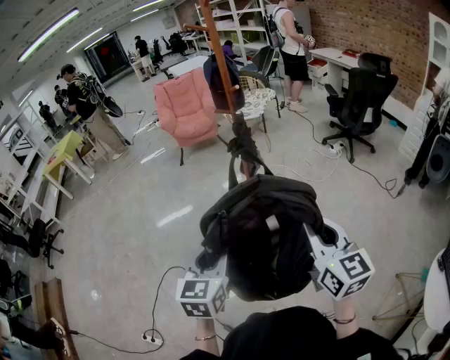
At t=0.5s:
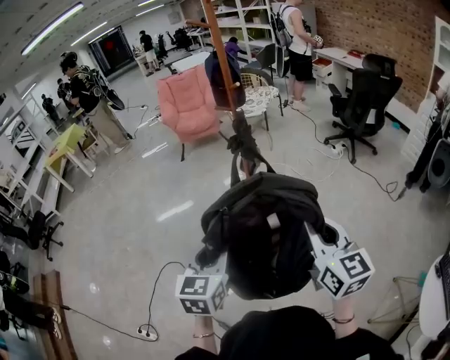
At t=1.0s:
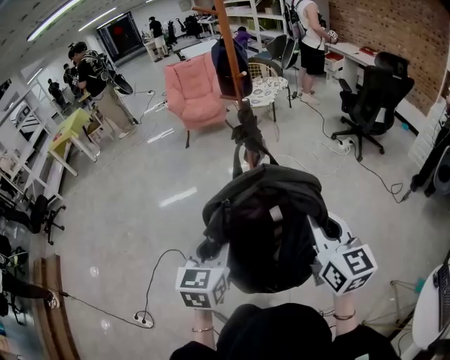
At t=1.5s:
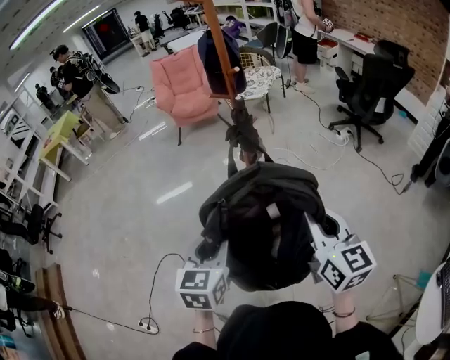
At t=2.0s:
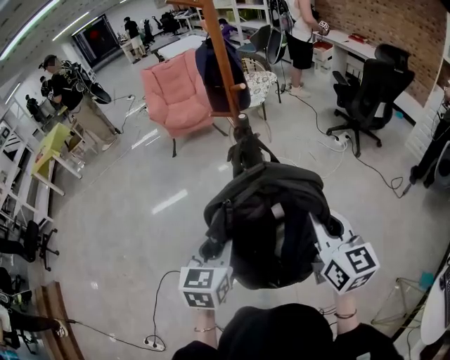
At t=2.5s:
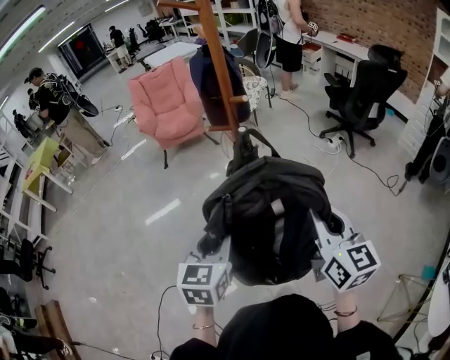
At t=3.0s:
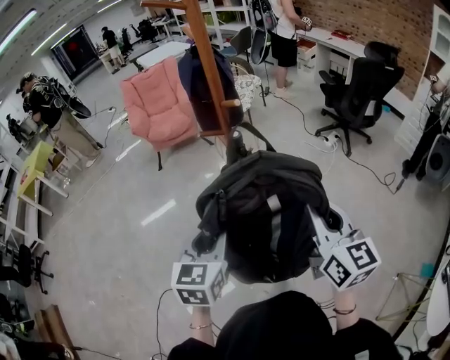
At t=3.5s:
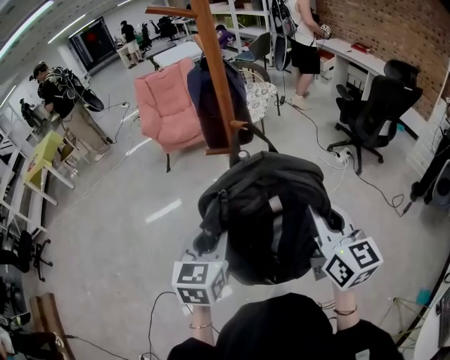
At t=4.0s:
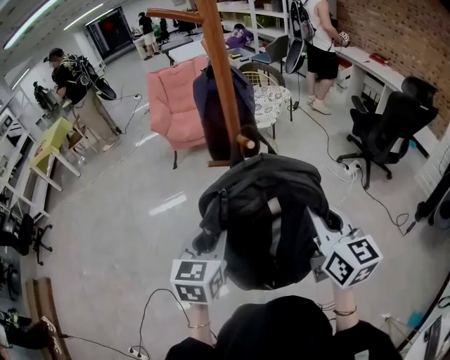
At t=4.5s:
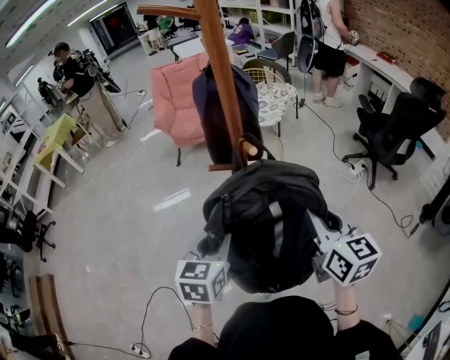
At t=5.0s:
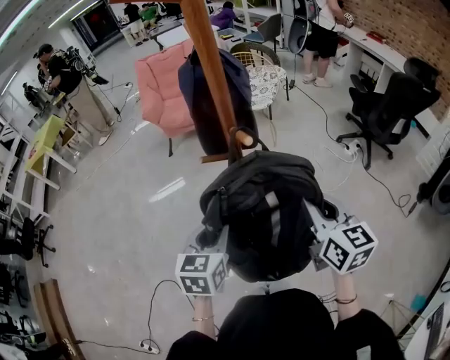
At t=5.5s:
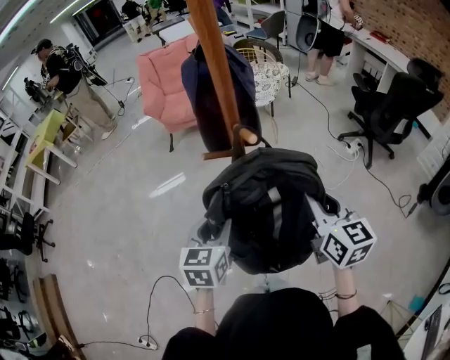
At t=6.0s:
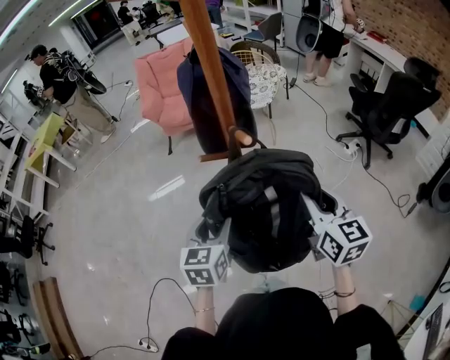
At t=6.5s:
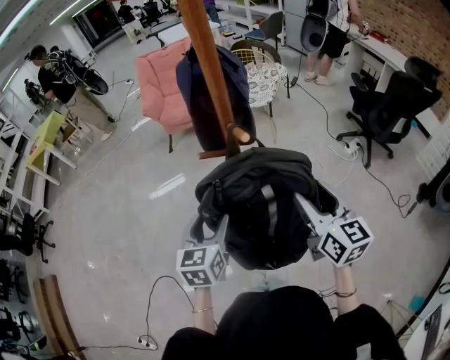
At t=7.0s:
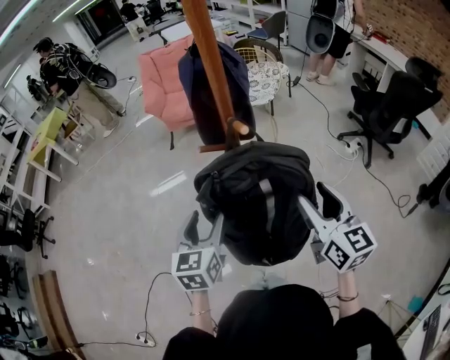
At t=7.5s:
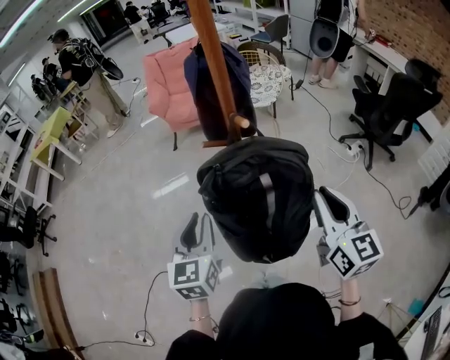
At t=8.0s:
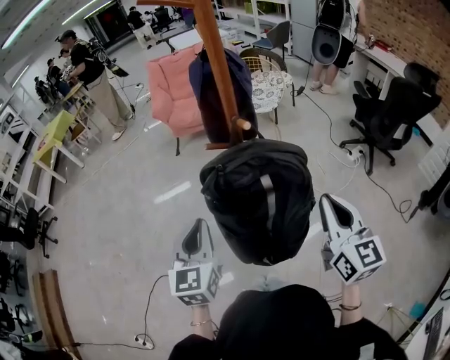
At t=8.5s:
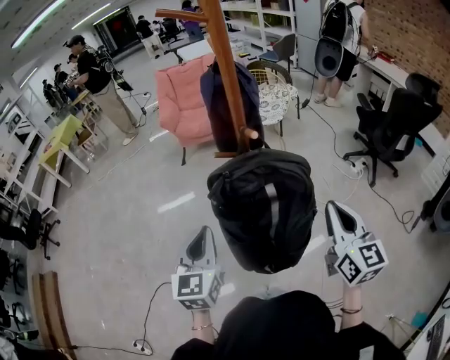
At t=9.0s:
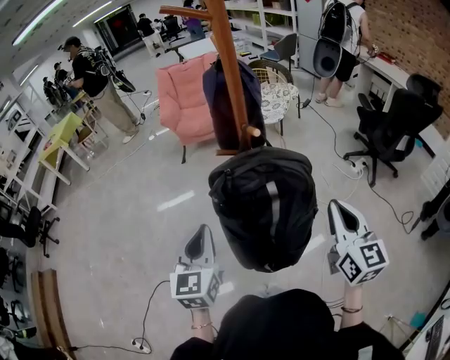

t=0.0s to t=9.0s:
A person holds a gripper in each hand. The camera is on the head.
t=0.0s to t=2.0s: The grippers both shift forward by about 20 cm.
t=2.0s to t=4.5s: The grippers both shift forward by some 25 cm.
t=4.5s to t=7.0s: The left gripper opens up, while the right gripper opens up.
t=7.0s to t=9.0s: The grippers both shift backward by some 5 cm. The left gripper closes its fingers. The right gripper closes.

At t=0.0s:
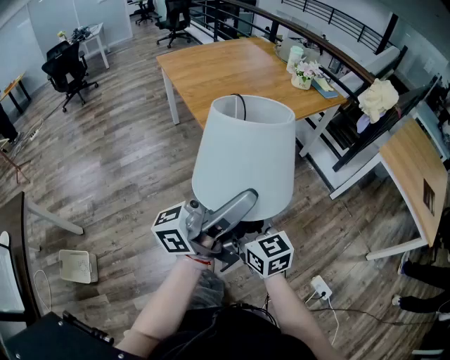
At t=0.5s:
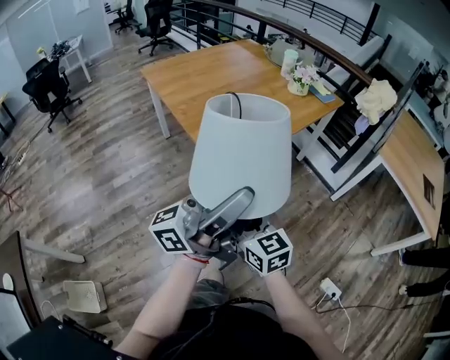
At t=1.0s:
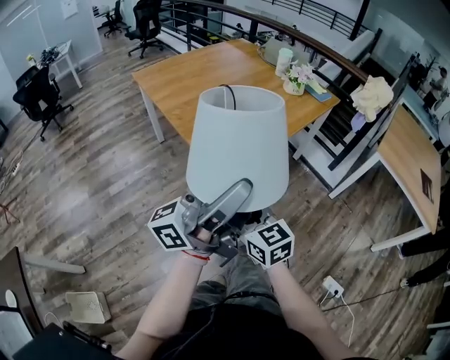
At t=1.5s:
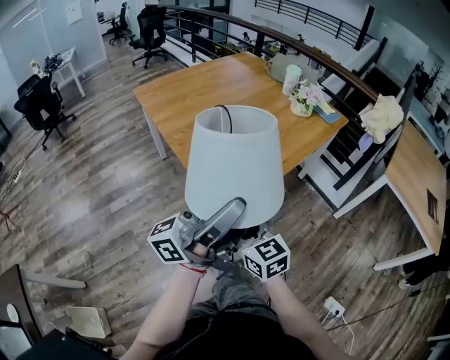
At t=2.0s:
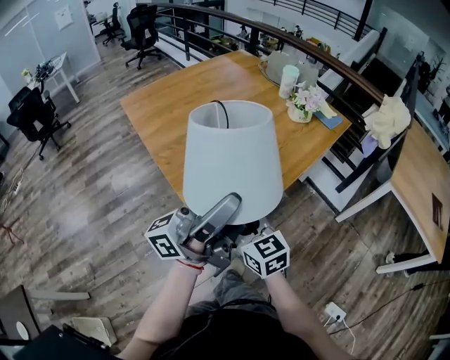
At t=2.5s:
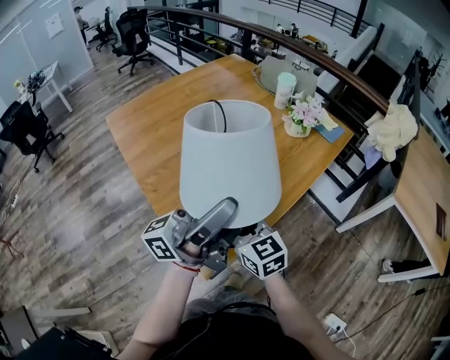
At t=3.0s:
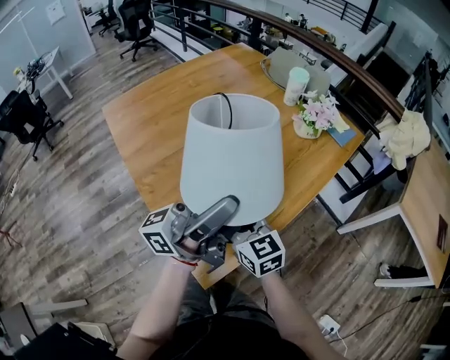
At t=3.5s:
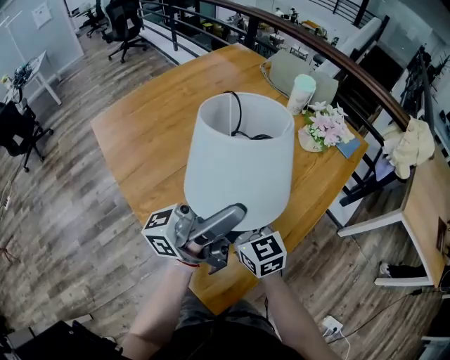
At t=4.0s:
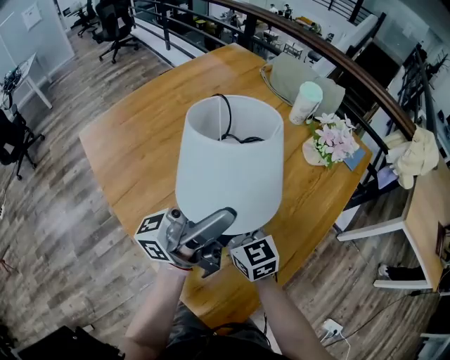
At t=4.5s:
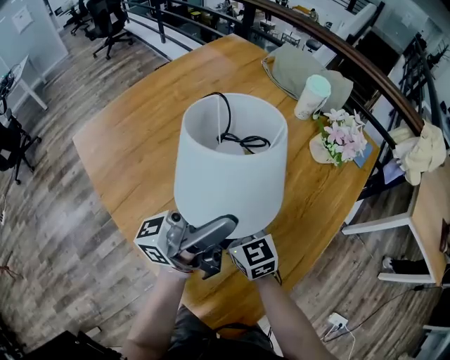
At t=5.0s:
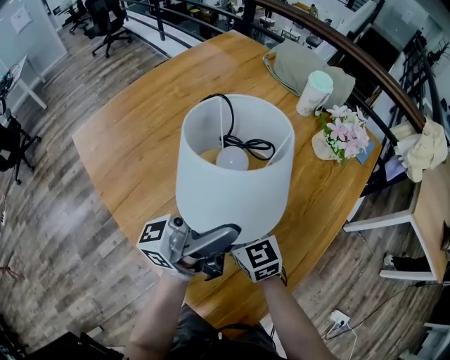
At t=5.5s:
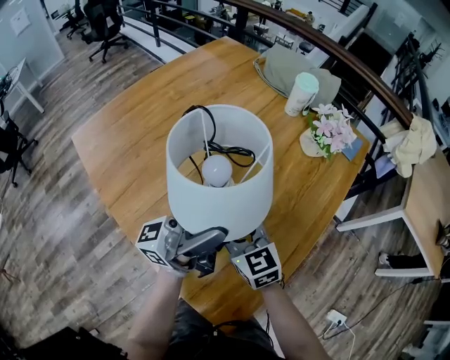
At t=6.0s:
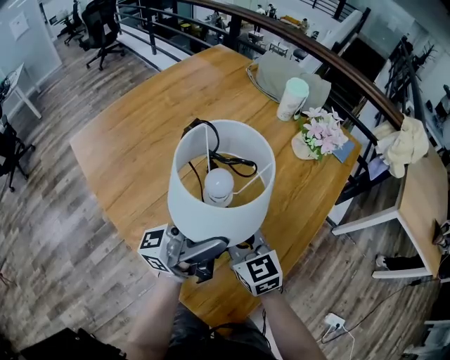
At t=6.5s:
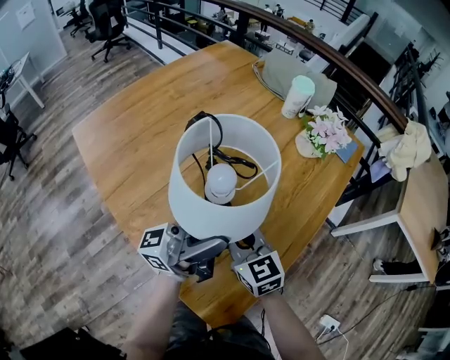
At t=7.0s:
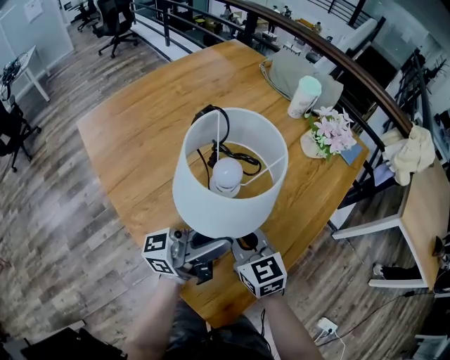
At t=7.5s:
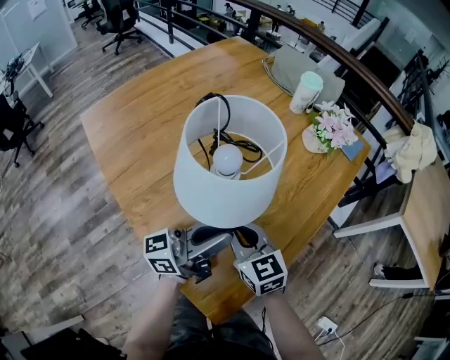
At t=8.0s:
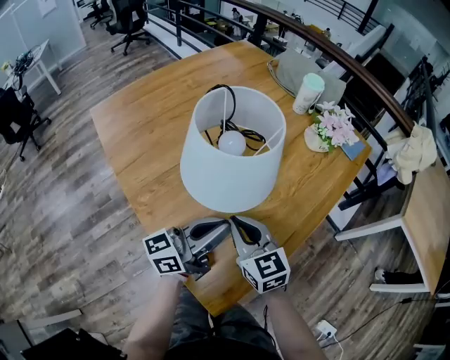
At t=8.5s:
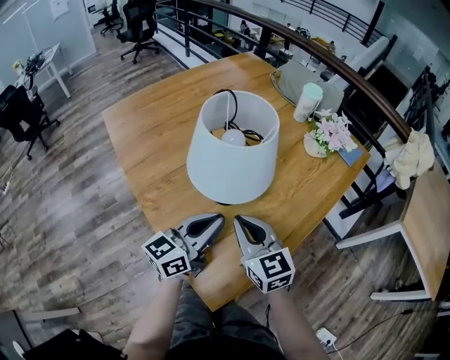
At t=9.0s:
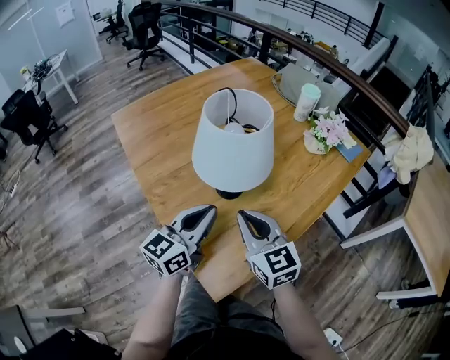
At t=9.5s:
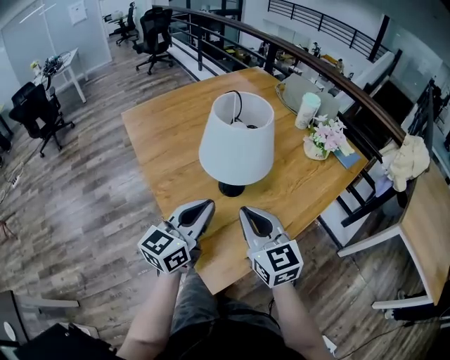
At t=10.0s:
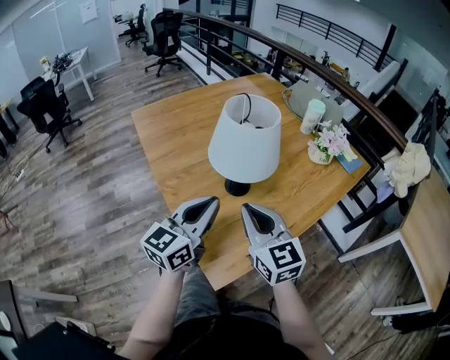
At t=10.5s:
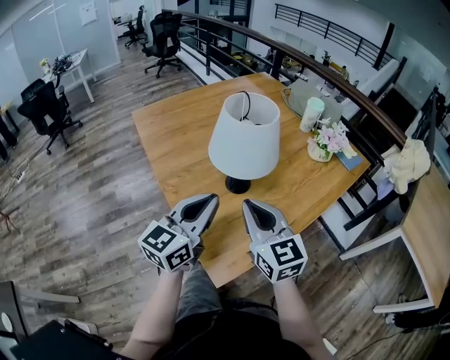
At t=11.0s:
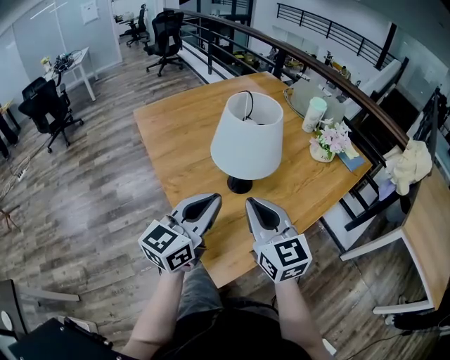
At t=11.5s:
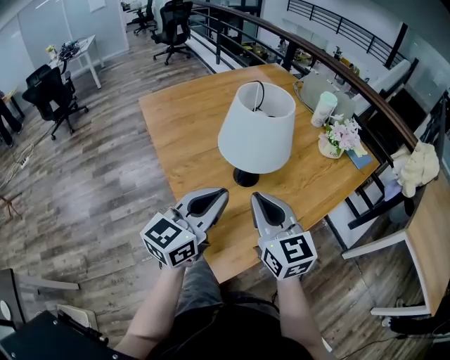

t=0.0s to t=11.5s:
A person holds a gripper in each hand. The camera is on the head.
t=0.0s to t=2.0s: The left gripper shifts roughly 35 cm forward and to the left, while the right gripper moves forward, approximately 30 cm.
t=2.0s to t=4.0s: Both grippers travel together forward, approximately 30 cm.
t=4.0s to t=6.0s: The right gripper closes its fingers, while the left gripper is displaced downward by roughly 5 cm.
t=6.0s to t=7.5s: The left gripper travels downward by about 10 cm, and turns by some 20 degrees.
t=7.5s to t=9.5s: The left gripper goes approximately 5 cm backward, and swivels some 50 degrees. Meanwhile the right gripper goes roughly 15 cm upward and backward.
t=9.5s to t=11.5s: The grippers move only a little.

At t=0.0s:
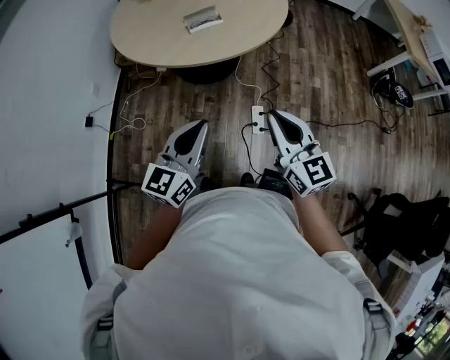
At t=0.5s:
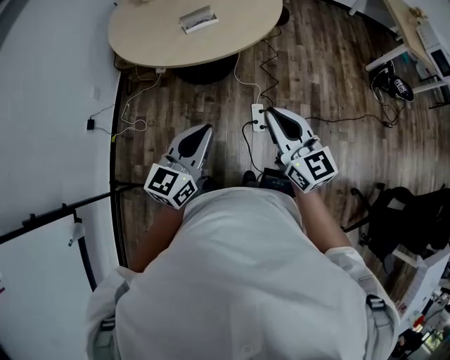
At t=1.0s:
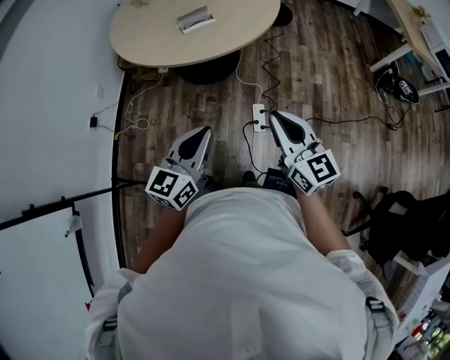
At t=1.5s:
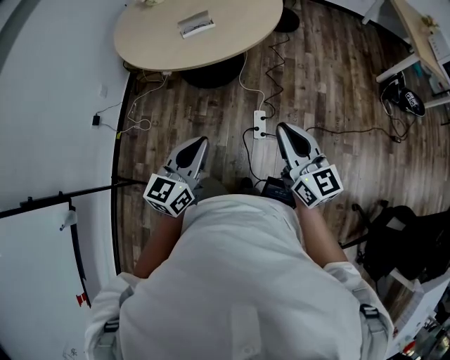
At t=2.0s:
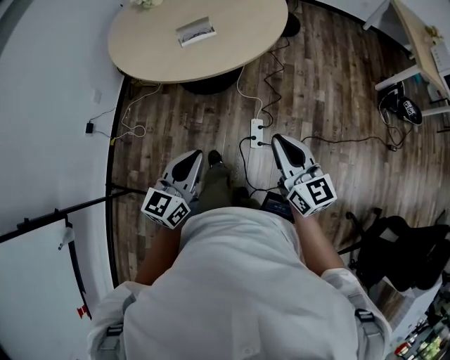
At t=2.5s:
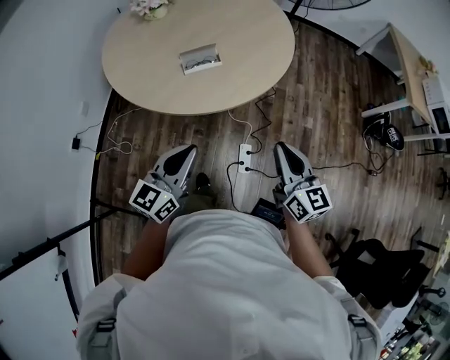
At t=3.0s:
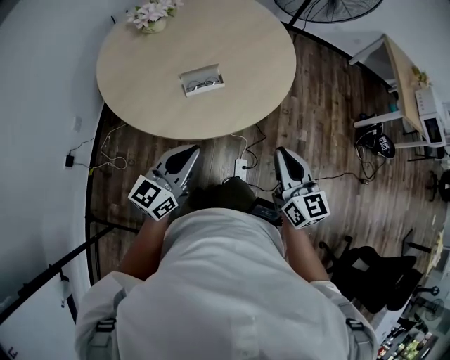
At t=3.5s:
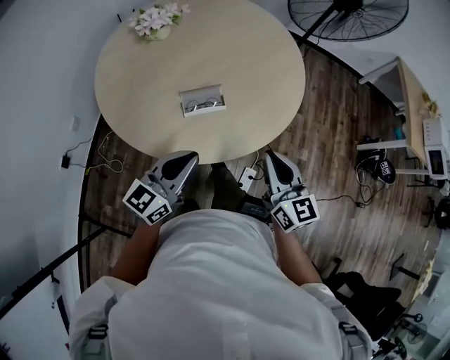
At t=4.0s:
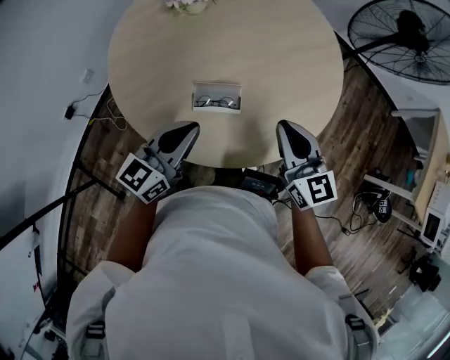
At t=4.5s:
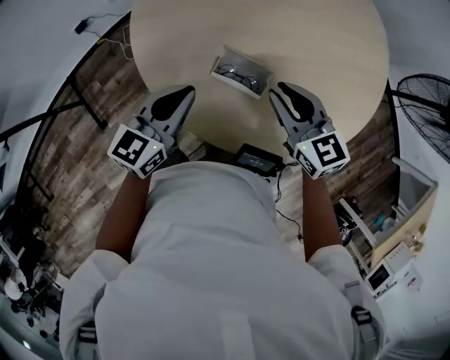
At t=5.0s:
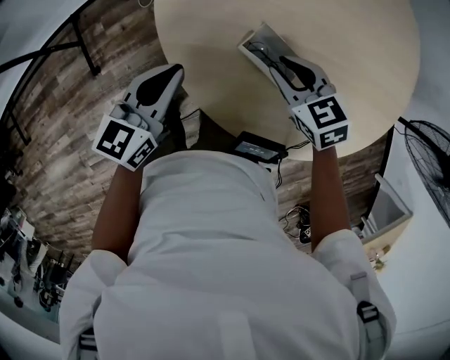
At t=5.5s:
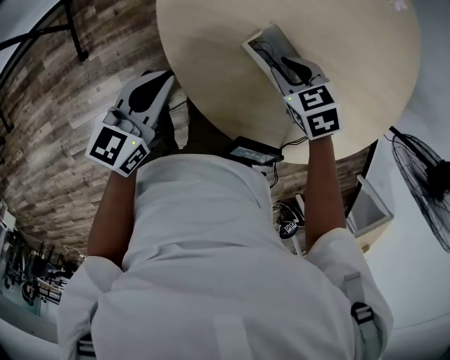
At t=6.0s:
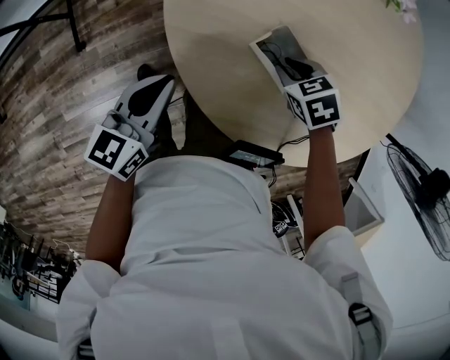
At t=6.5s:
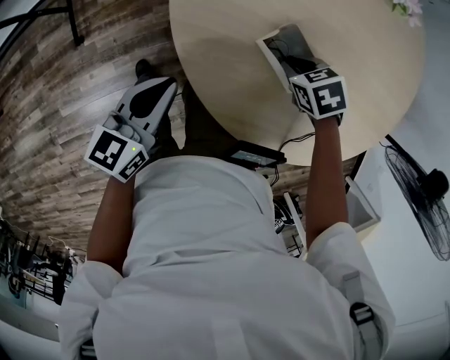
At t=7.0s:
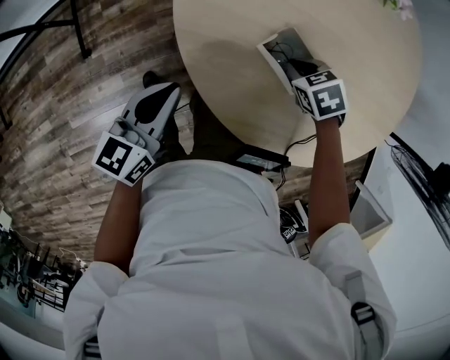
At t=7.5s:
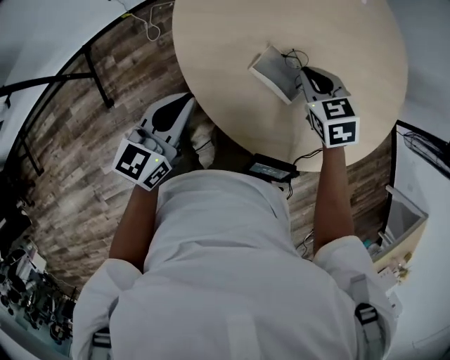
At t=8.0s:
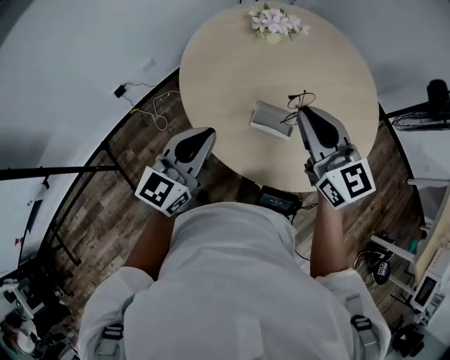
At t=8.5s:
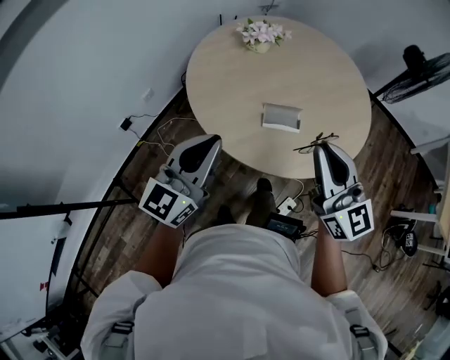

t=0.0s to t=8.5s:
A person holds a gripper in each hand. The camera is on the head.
t=0.0s to t=2.0s: The left gripper shifts approximately 10 cm to the right and downward. Meanwhile the right gripper is displaced to the right by some 10 cm.
t=2.0s to t=4.0s: Both grippers are carried forward, roughly 50 cm. The right gripper changes its angle by roughly 30 degrees.
t=4.0s to t=6.5s: The left gripper travels downward by roughly 15 cm, and turns by approximately 50 degrees. The right gripper shifts roughly 30 cm downward, and tilts its fingers approximately 60 degrees downward.
t=6.5s to t=8.5s: The grippers both shift upward by about 35 cm. The left gripper swivels about 50 degrees, while the right gripper points its fingers about 80 degrees further upward.
